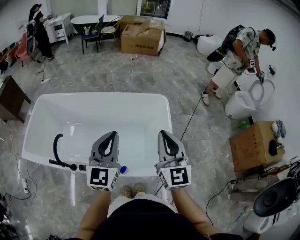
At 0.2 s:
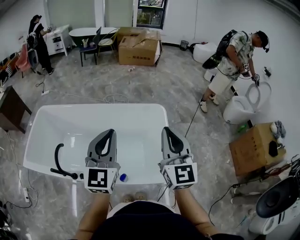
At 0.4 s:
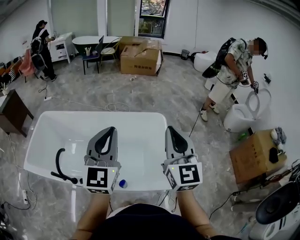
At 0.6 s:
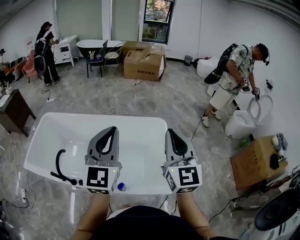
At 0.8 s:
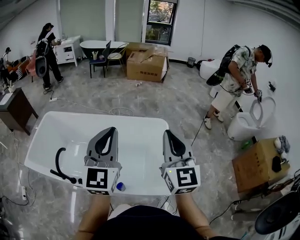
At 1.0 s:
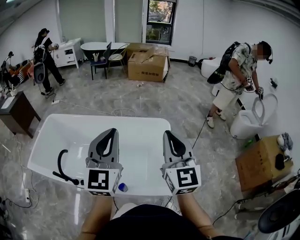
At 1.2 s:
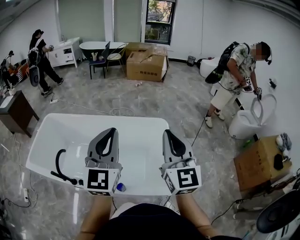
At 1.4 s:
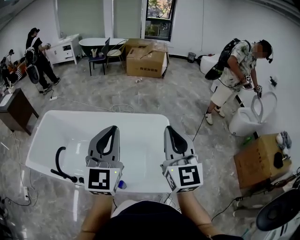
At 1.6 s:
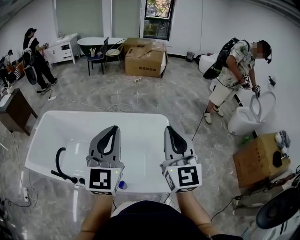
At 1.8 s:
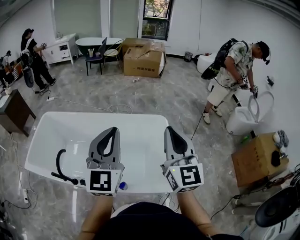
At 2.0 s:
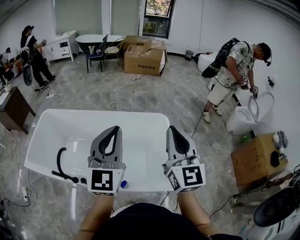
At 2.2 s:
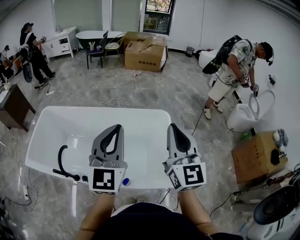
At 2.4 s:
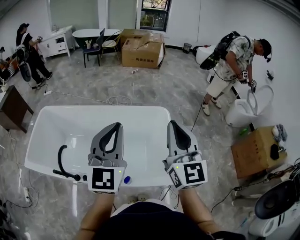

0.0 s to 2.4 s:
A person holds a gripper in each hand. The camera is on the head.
0.0 to 1.2 s: Both grippers move upward and to the right, roughly 15 cm.
1.2 to 2.4 s: The right gripper is displaced to the left by approximately 5 cm.

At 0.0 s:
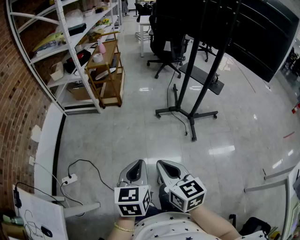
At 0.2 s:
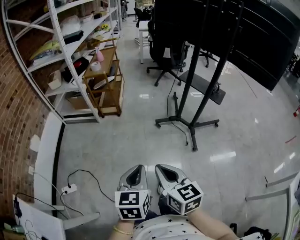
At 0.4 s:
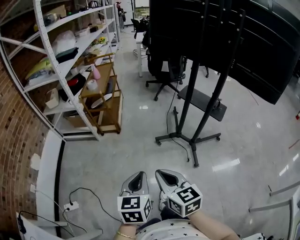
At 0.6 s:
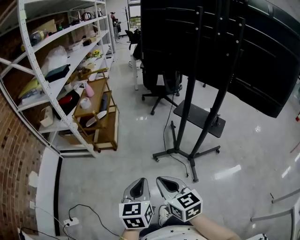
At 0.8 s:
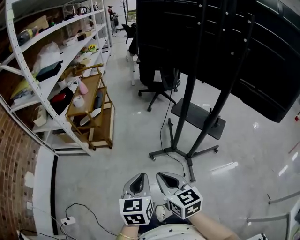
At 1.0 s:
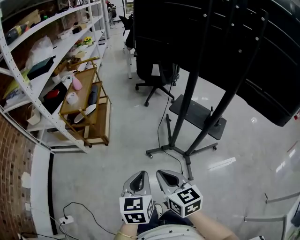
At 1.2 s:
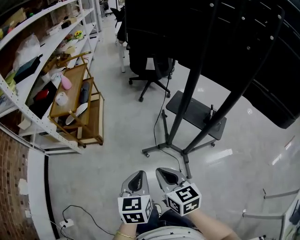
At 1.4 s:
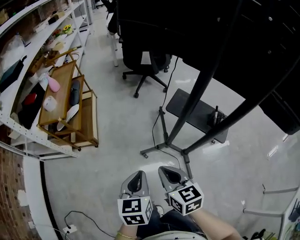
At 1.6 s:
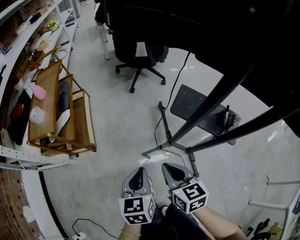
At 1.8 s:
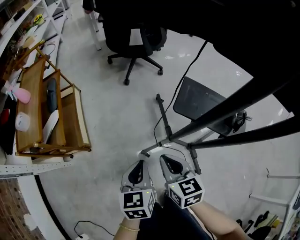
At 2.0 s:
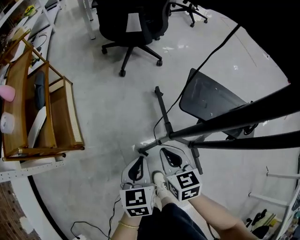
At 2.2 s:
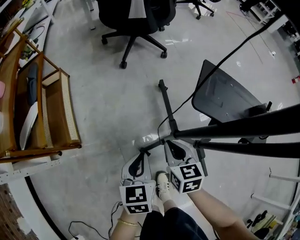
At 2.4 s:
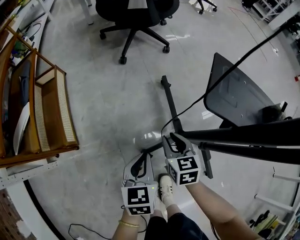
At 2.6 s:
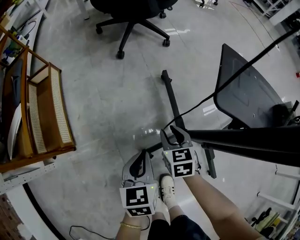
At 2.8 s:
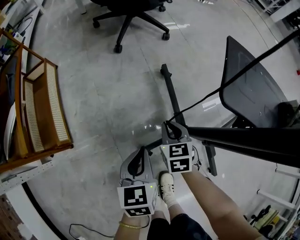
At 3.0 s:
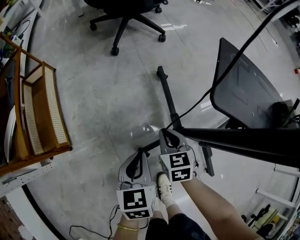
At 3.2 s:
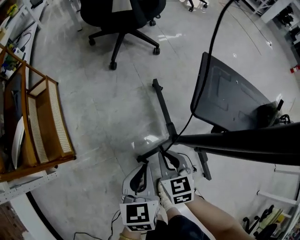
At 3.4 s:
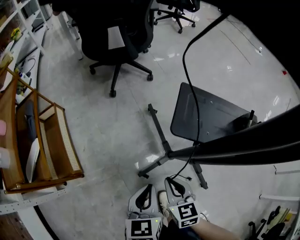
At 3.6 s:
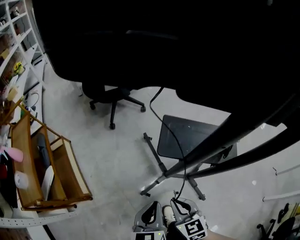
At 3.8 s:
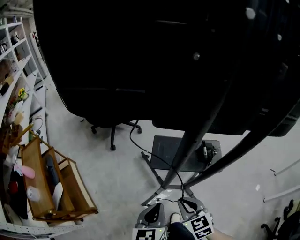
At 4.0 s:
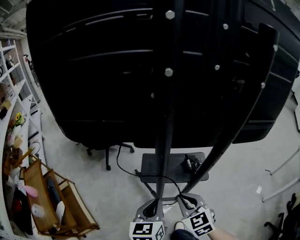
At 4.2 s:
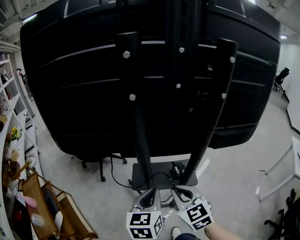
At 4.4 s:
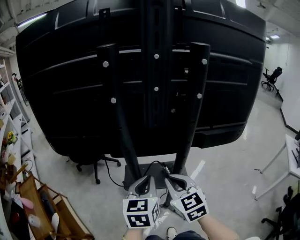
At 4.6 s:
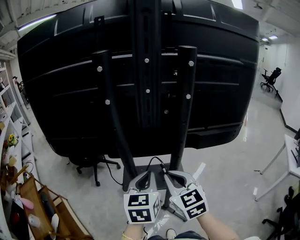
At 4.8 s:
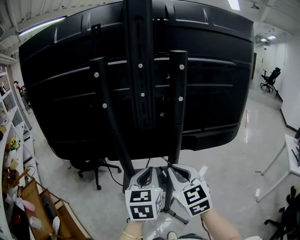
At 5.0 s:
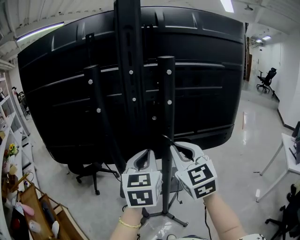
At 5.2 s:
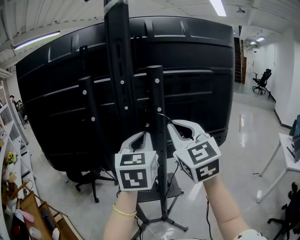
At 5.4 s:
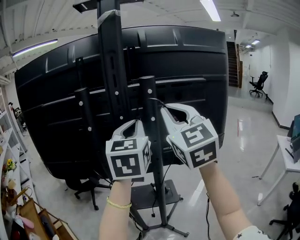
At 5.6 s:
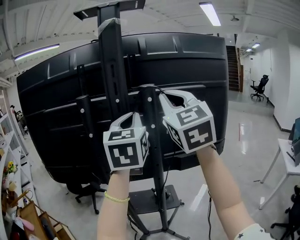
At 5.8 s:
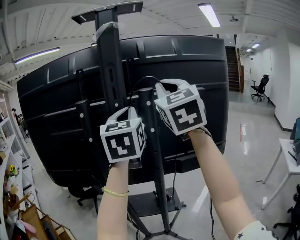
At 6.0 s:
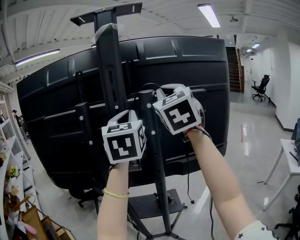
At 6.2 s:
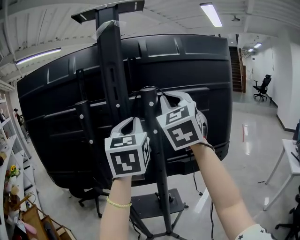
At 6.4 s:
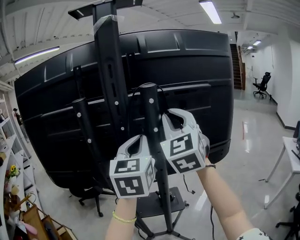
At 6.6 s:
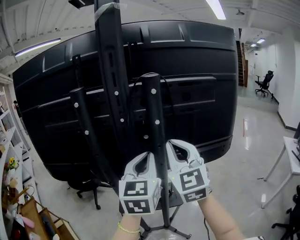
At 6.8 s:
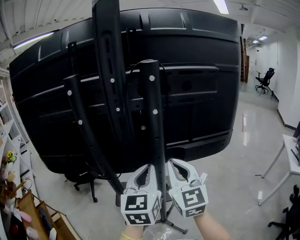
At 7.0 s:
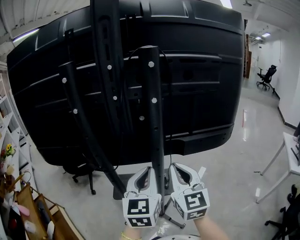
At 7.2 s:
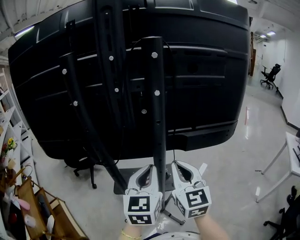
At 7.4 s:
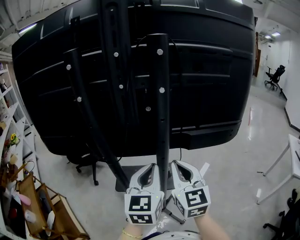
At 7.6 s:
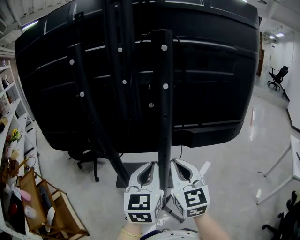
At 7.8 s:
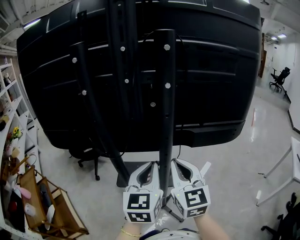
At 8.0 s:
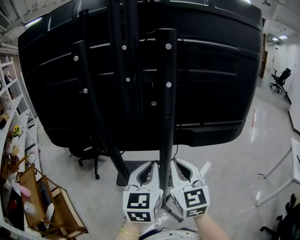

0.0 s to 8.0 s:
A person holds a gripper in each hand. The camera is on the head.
0.0 to 1.6 s: The two grippers travel together, forward, approximately 70 cm.
1.6 to 3.2 s: The two grippers go approximately 35 cm downward and forward. The right gripper opens, then closes again.
3.2 to 4.8 s: Both grippers move upward and to the right, about 70 cm. The left gripper rotates approximately 40 degrees; the right gripper changes its angle by some 40 degrees.
4.8 to 6.4 s: The two grippers go some 25 cm upward. The left gripper turns by some 20 degrees. Meanwhile the right gripper swivels some 30 degrees.
6.4 to 8.0 s: The two grippers go about 25 cm downward. The right gripper changes its angle by approximately 30 degrees.

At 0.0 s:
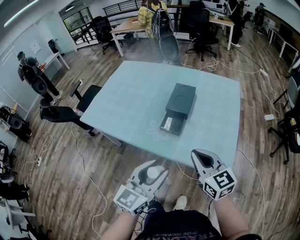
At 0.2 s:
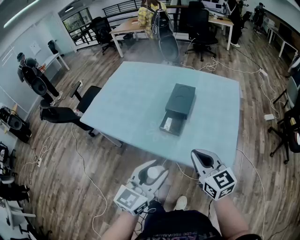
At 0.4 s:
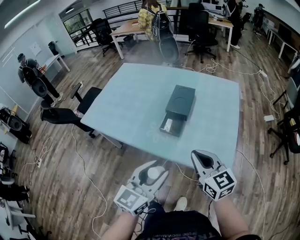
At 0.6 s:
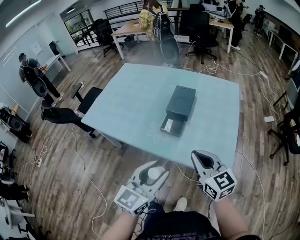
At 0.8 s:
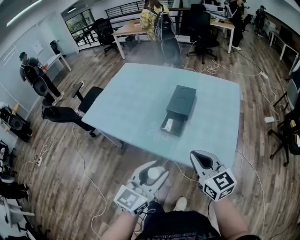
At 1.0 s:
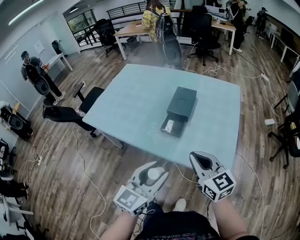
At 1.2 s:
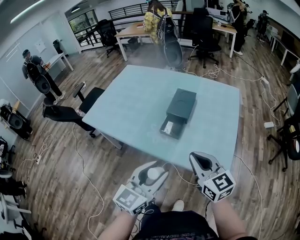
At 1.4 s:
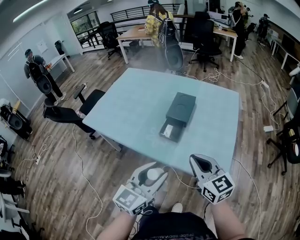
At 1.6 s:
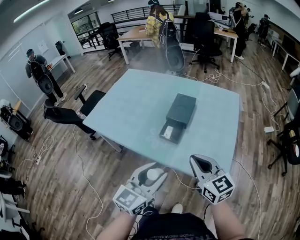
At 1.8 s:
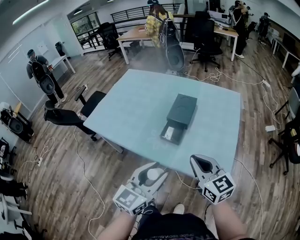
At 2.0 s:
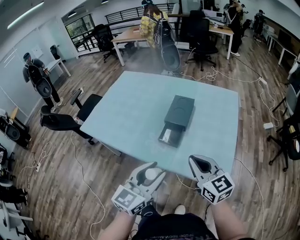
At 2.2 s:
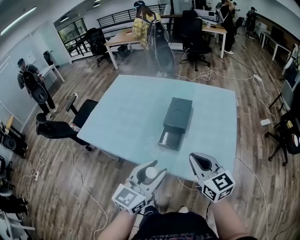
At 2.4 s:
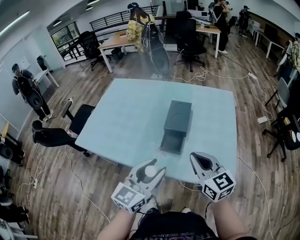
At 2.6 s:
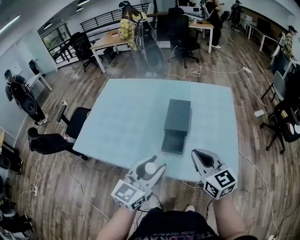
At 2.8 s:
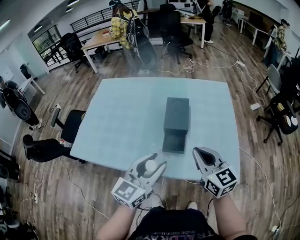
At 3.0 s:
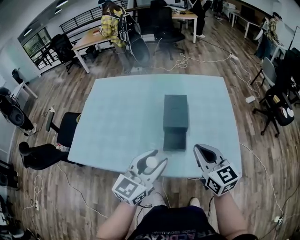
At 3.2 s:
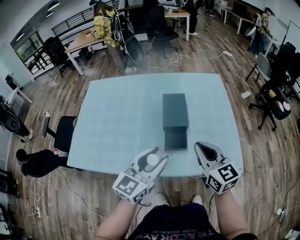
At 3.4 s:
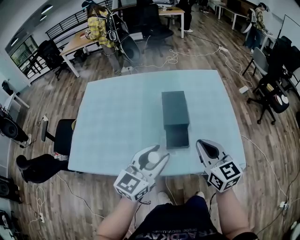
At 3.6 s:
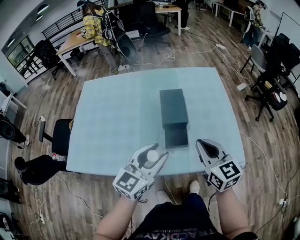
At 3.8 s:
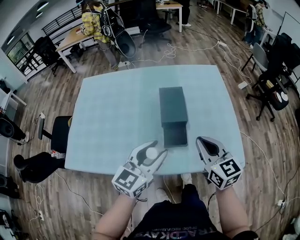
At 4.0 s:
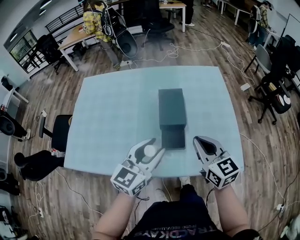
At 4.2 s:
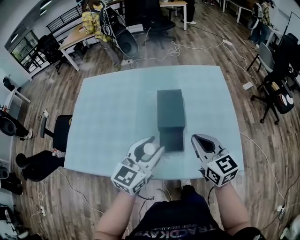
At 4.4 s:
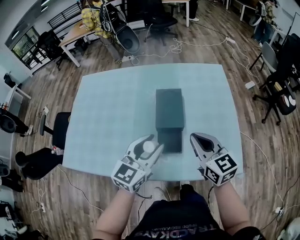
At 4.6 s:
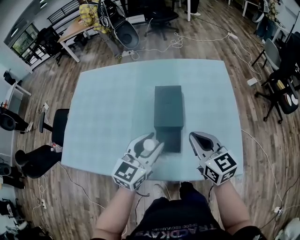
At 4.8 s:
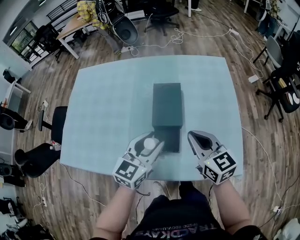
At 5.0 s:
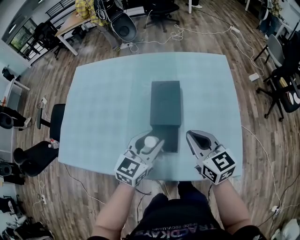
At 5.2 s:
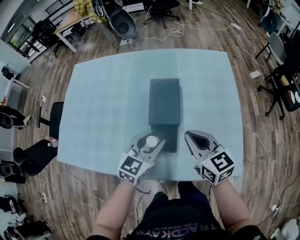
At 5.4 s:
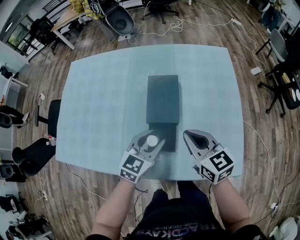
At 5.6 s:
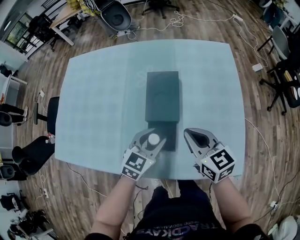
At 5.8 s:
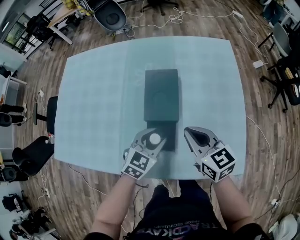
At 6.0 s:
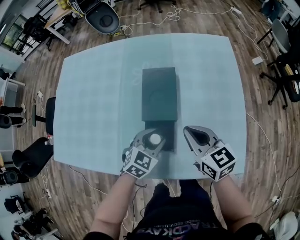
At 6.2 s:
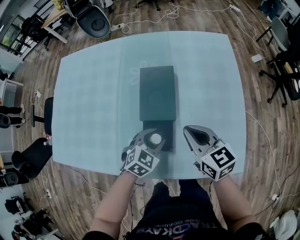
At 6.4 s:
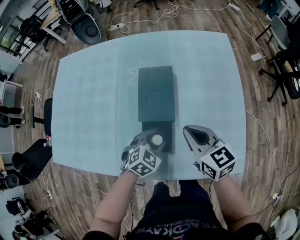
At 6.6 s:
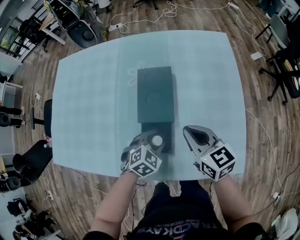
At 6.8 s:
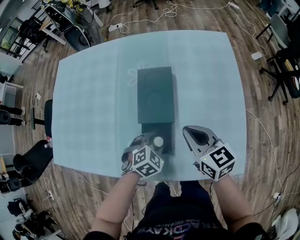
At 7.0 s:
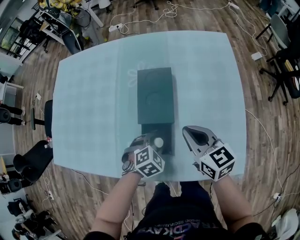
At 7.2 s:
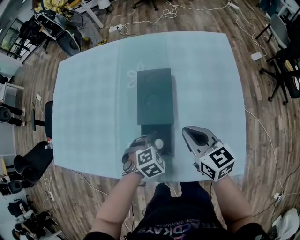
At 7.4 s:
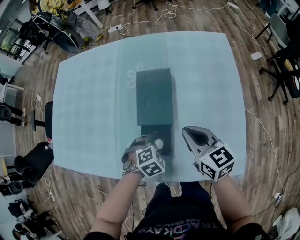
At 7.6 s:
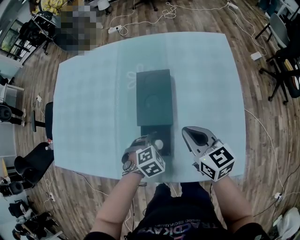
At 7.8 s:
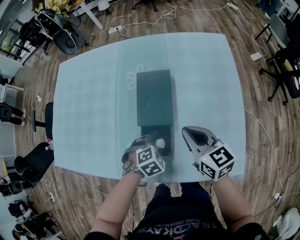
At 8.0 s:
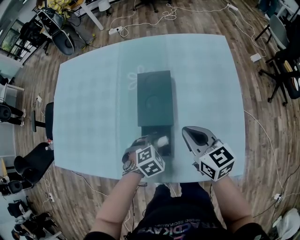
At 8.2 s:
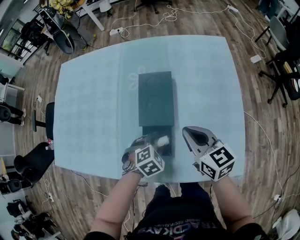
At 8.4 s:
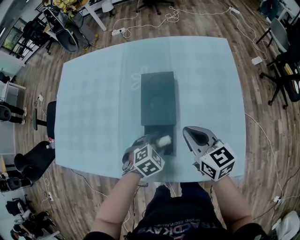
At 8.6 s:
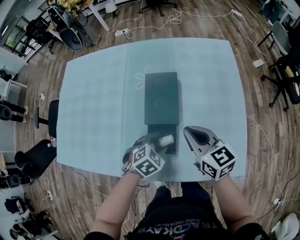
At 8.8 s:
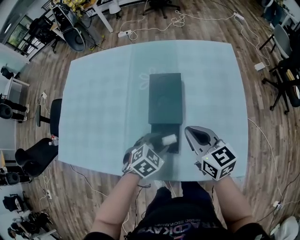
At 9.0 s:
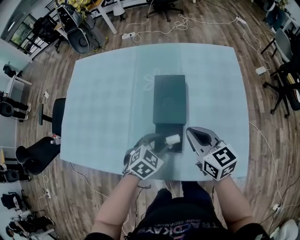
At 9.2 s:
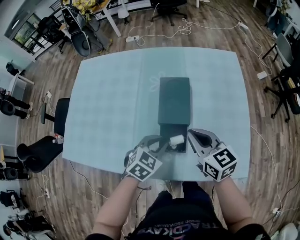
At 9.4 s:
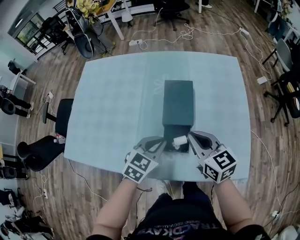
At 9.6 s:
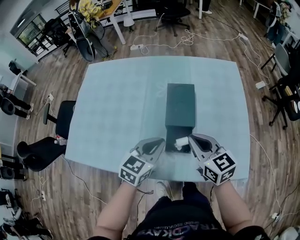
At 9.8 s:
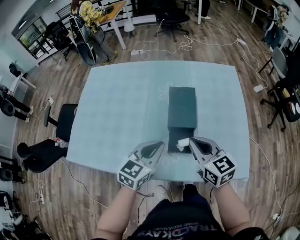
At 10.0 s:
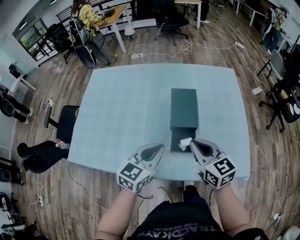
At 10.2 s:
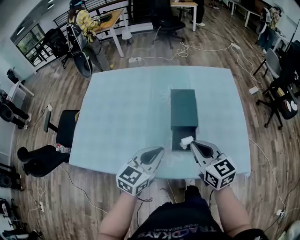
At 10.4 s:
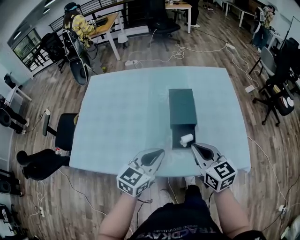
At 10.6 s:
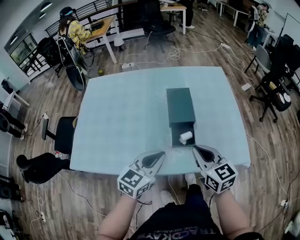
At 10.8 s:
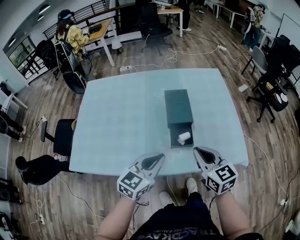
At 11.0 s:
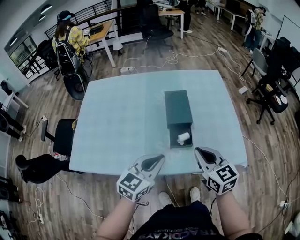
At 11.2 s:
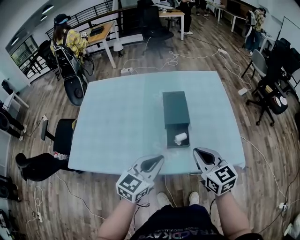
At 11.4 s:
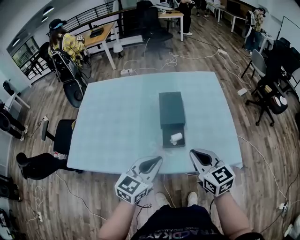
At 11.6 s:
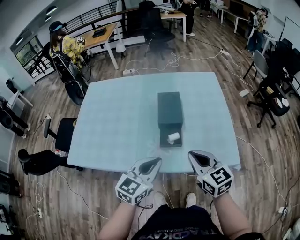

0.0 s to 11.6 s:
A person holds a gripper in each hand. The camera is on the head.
0.0 to 1.4 s: The grippers make only small movements.
1.4 to 2.8 s: Both grippers travel together forward and to the left, some 15 cm.
2.8 to 4.4 s: The two grippers go roughly 15 cm forward.
4.4 to 5.8 s: The left gripper is displaced downward by approximately 20 cm, and turns by approximately 30 degrees, while the right gripper heads downward and forward, covering roughly 10 cm.
5.8 to 7.2 s: The left gripper is displaced downward by about 10 cm, and points its fingers some 30 degrees further downward.
7.2 to 8.8 s: The left gripper moves upward, about 5 cm.
8.8 to 10.2 s: The left gripper heads upward, to the left and backward, covering approximately 25 cm, tilts its fingers roughly 40 degrees upward, and closes up. The right gripper travels backward, to the left and upward by approximately 15 cm.
10.2 to 11.6 s: Both grippers travel together backward and to the right, some 10 cm.

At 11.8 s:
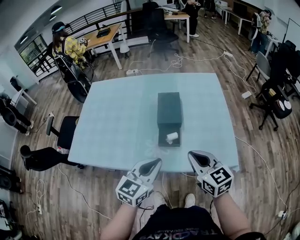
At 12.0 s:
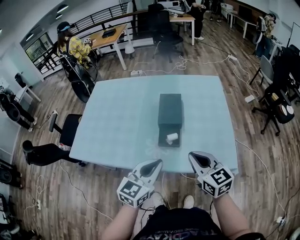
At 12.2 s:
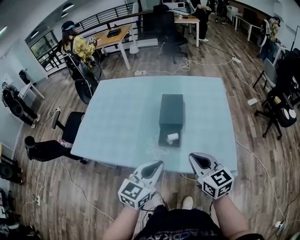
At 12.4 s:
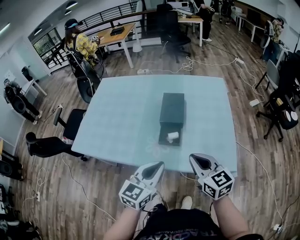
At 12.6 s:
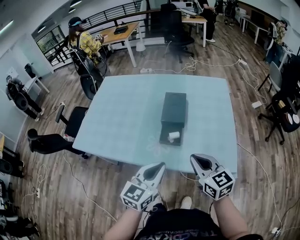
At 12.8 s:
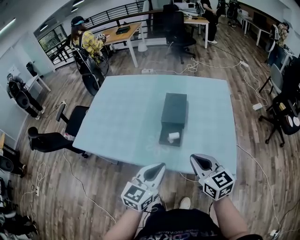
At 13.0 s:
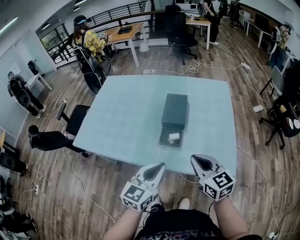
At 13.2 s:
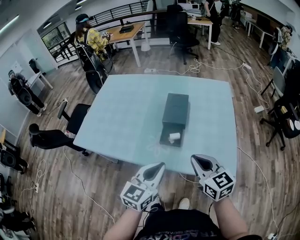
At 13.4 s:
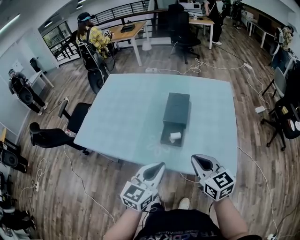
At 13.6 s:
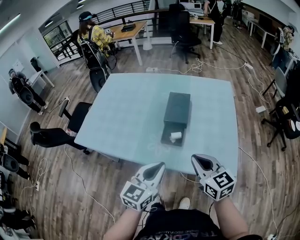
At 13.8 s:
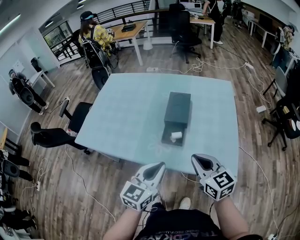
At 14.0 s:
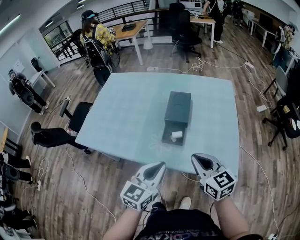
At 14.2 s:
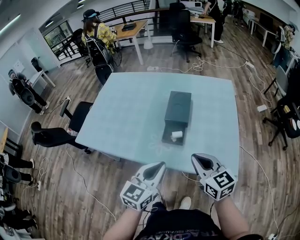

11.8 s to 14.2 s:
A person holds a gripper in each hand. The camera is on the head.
11.8 to 13.0 s: The left gripper changes place by roughly 5 cm.
13.0 to 14.2 s: Both grippers stay about where they are.
